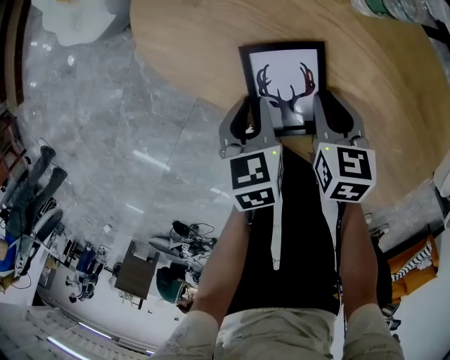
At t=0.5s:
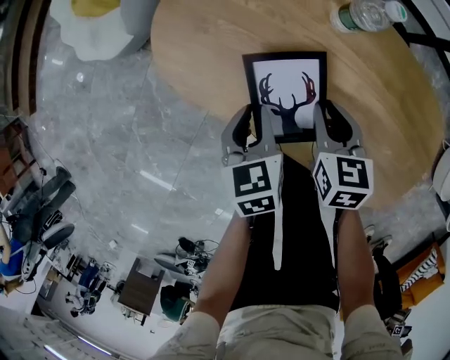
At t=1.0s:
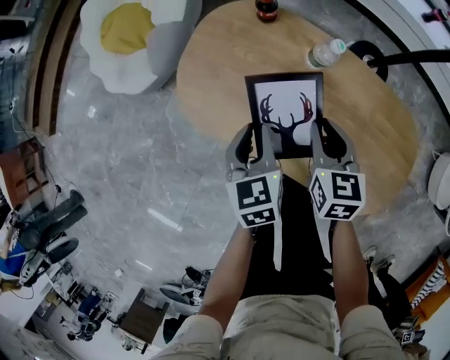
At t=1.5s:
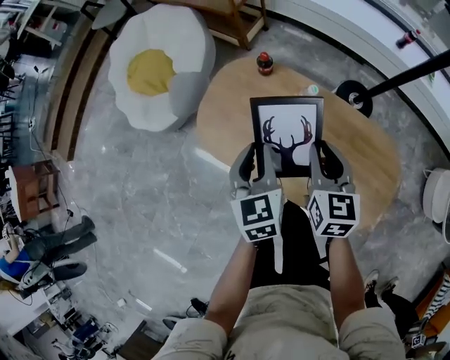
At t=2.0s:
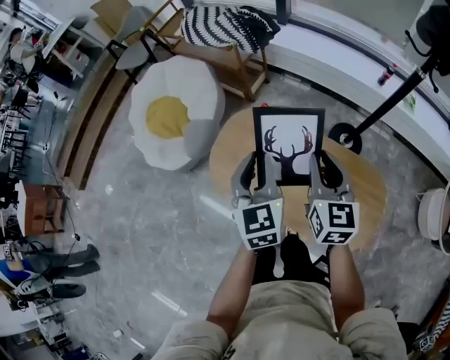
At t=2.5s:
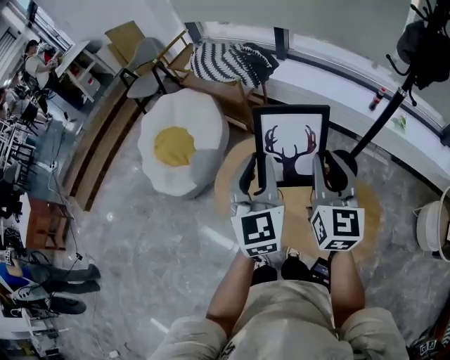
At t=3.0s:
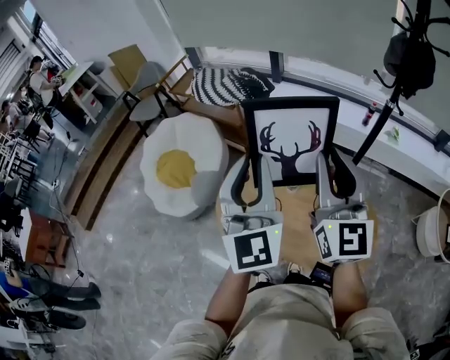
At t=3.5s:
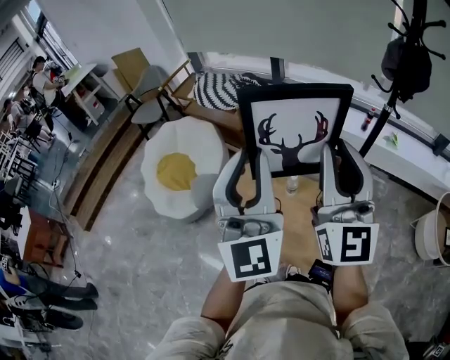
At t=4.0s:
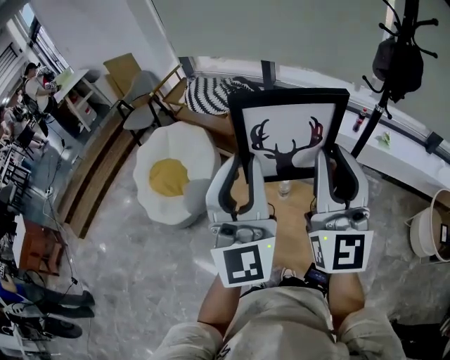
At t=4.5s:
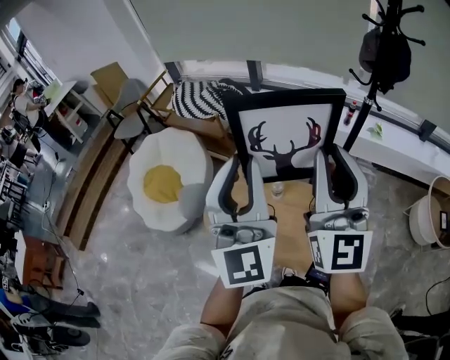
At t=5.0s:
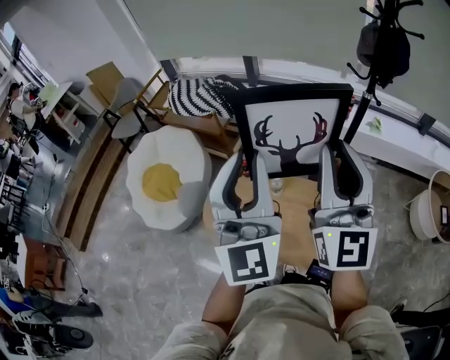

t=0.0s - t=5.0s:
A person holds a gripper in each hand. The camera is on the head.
t=0.0s - t=2.5s: The two grippers go approximately 70 cm upward. The left gripper points its fingers roughly 50 degrees further upward, while the right gripper tips its fingers upward by some 50 degrees.
t=2.5s - t=5.0s: The left gripper goes some 20 cm upward, and swivels about 30 degrees; the right gripper heads upward and backward, covering about 20 cm, and swivels some 30 degrees.

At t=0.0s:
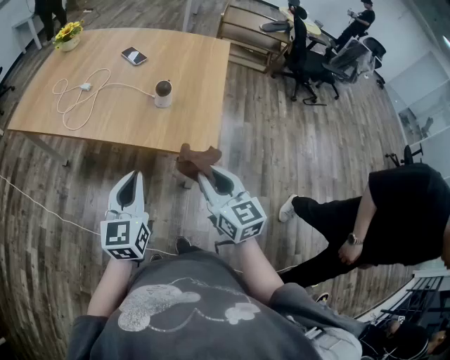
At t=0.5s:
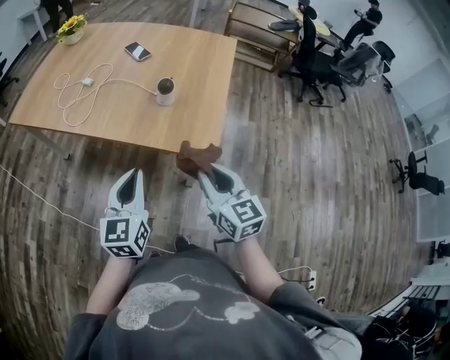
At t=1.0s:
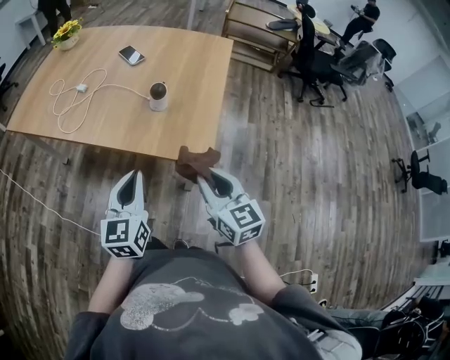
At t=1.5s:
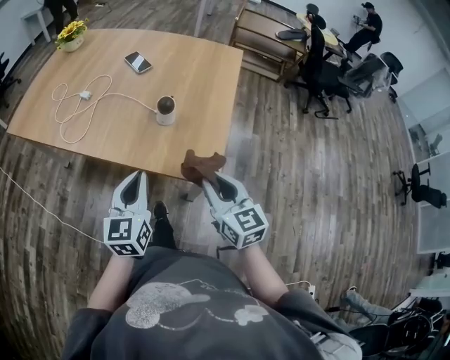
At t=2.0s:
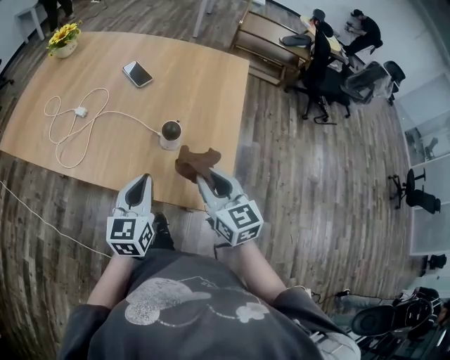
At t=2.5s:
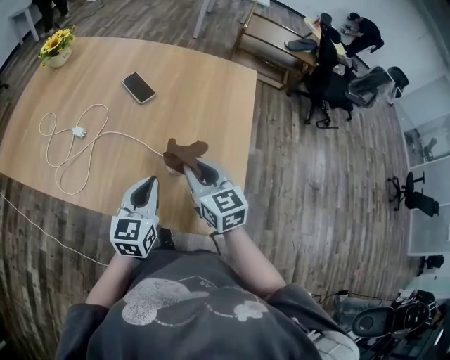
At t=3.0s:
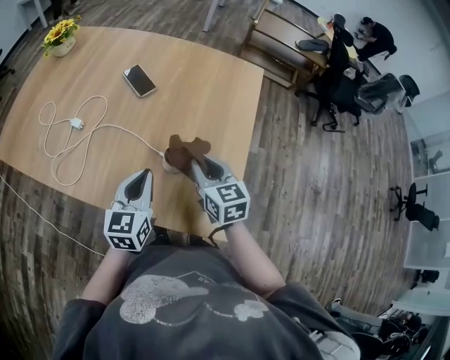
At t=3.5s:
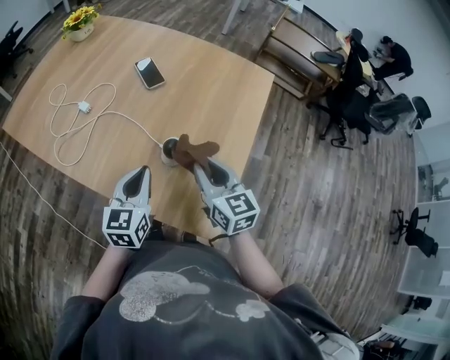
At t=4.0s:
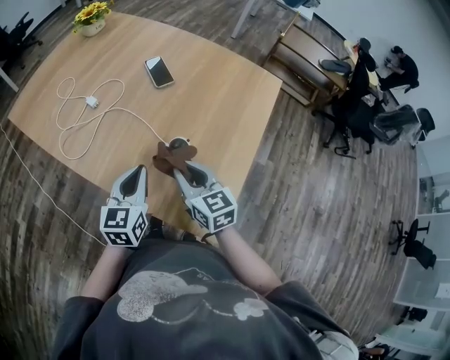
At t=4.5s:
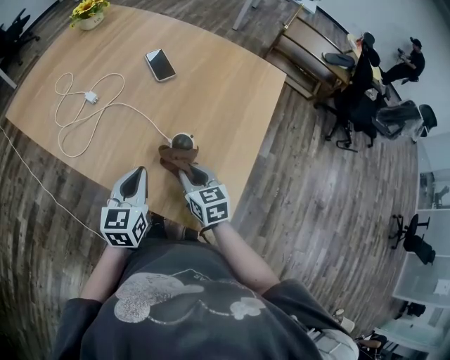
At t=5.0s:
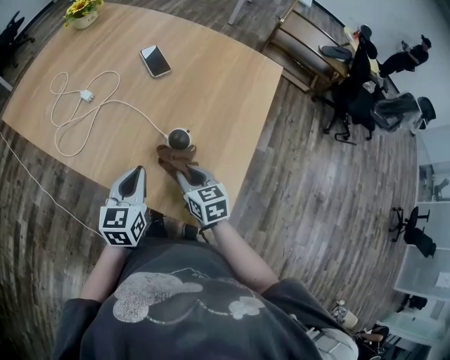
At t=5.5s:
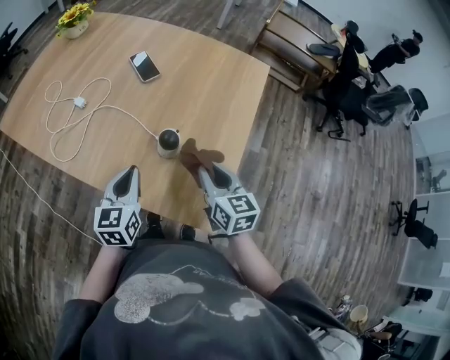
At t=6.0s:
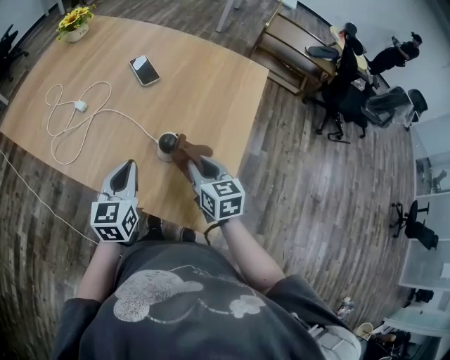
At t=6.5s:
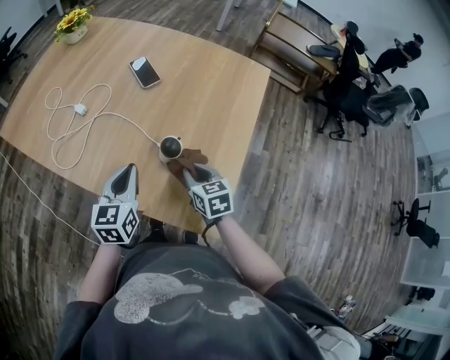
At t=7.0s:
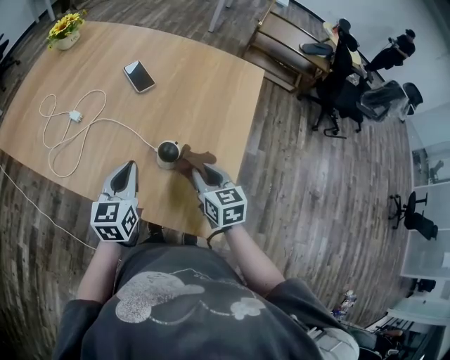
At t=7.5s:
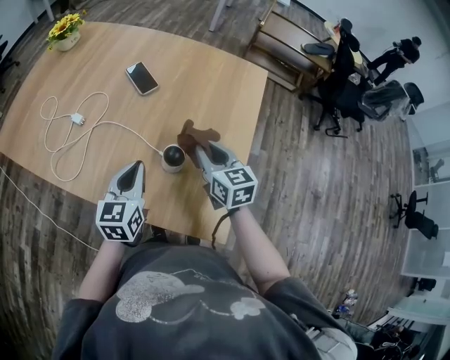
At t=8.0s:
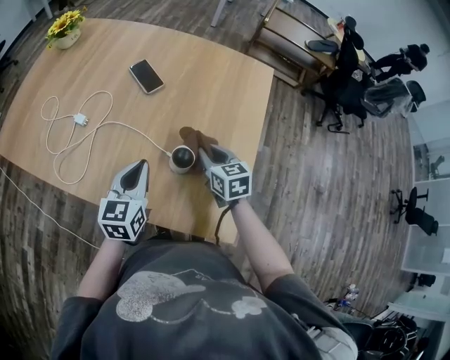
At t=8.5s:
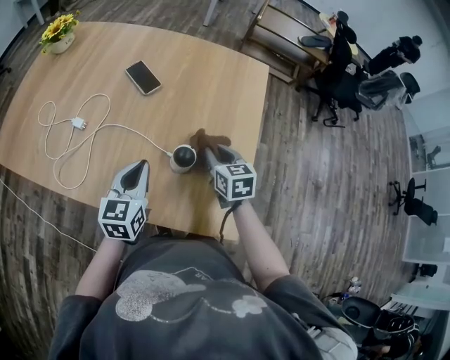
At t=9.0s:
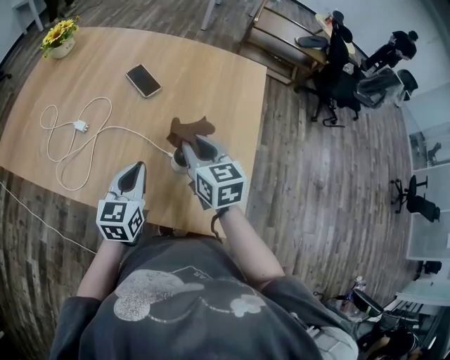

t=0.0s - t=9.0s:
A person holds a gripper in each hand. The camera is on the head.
t=0.0s - t=2.0s: The two grippers go roughly 20 cm forward.
t=2.0s - t=4.5s: The right gripper heads downward and forward, covering roughly 15 cm, and changes its angle by approximately 20 degrees; the left gripper travels forward by approximately 5 cm.
t=4.5s - t=7.0s: The right gripper goes up and down, some 10 cm each way, reversing 2 times.
t=7.0s - t=9.0s: The right gripper goes up and down, roughly 10 cm each way, reversing 2 times.

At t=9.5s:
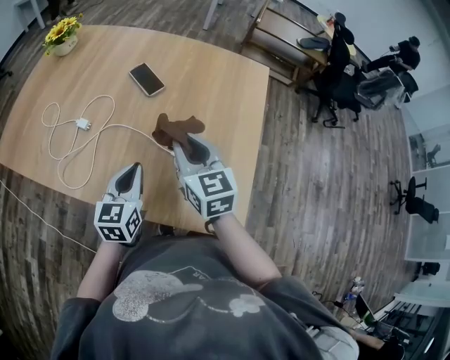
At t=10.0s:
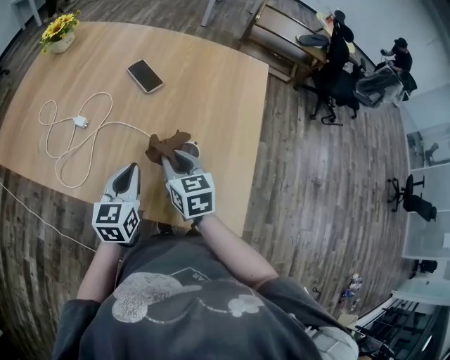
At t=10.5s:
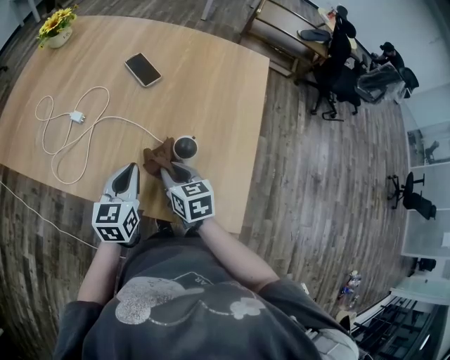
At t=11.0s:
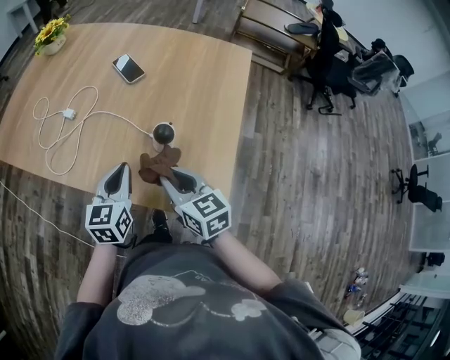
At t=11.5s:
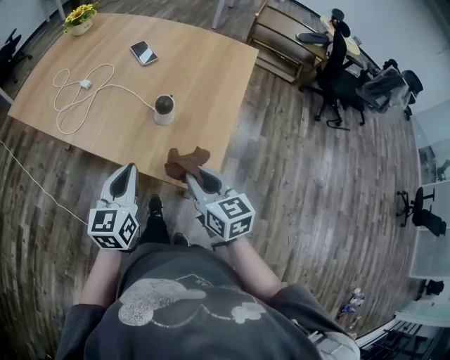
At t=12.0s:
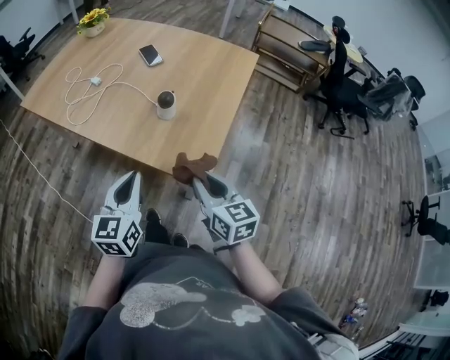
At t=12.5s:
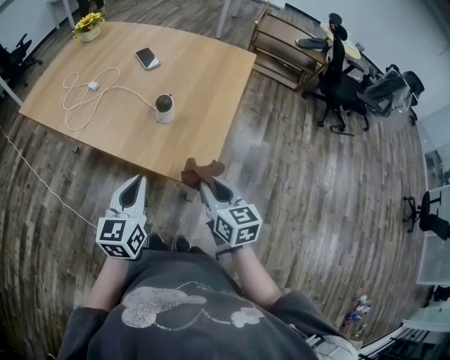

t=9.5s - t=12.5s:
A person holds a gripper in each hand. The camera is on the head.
t=9.5s - t=11.0s: The right gripper is displaced backward and downward by some 15 cm; the left gripper heads backward, covering roughly 5 cm.
t=11.0s - t=12.5s: The left gripper heads backward, covering about 20 cm. Meanwhile the right gripper is displaced backward and to the right by some 20 cm.

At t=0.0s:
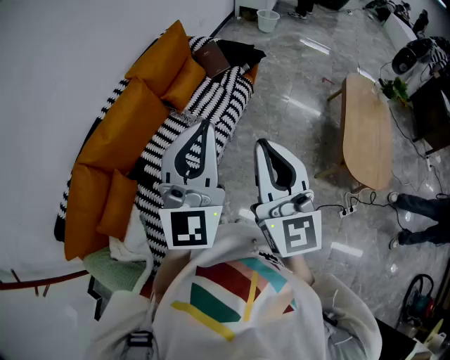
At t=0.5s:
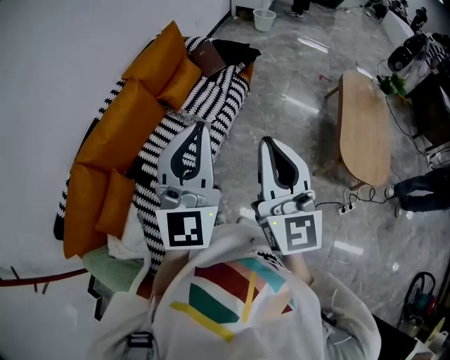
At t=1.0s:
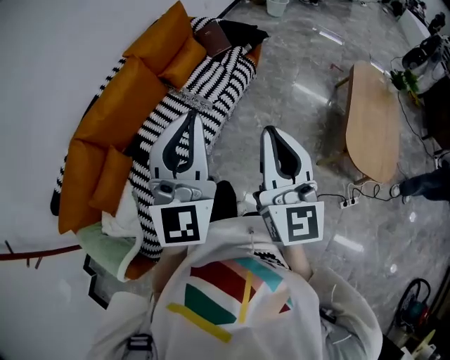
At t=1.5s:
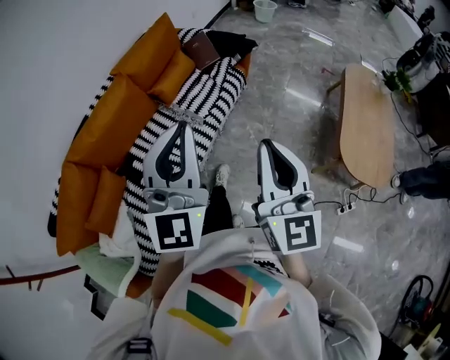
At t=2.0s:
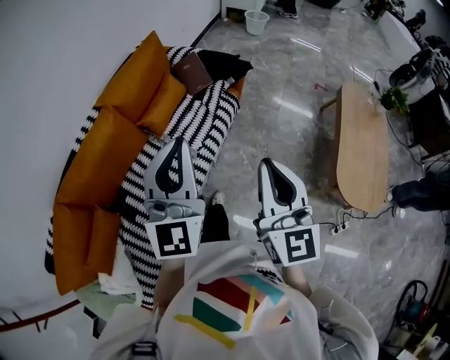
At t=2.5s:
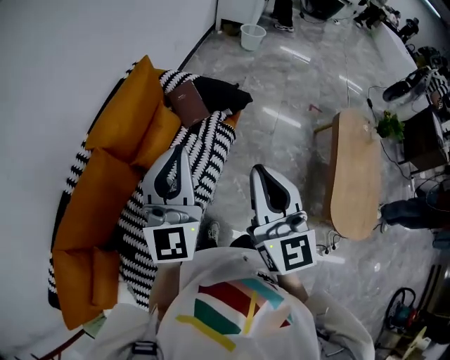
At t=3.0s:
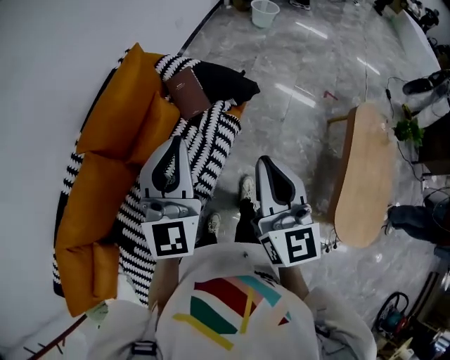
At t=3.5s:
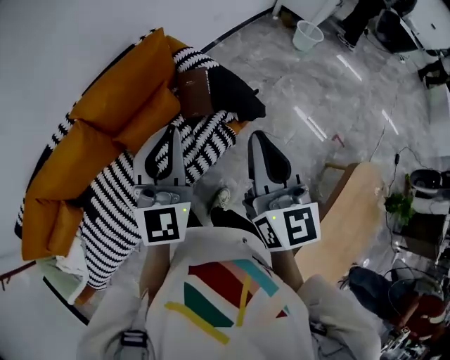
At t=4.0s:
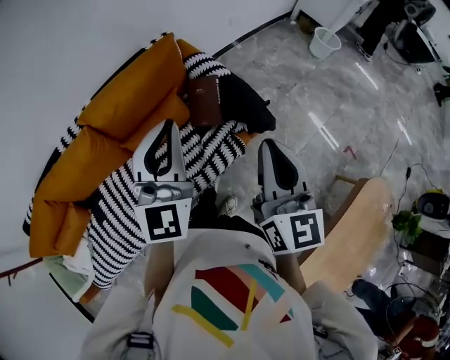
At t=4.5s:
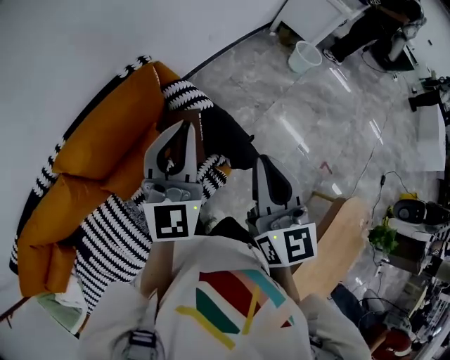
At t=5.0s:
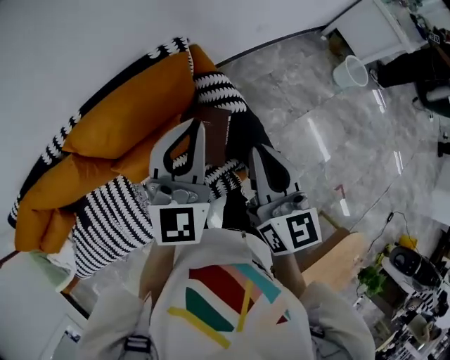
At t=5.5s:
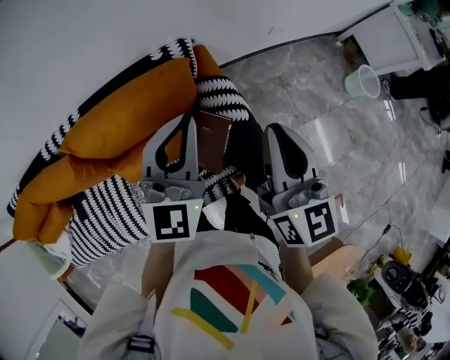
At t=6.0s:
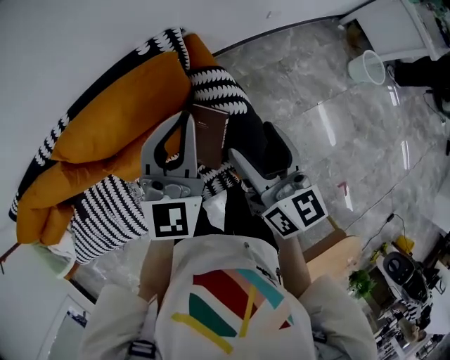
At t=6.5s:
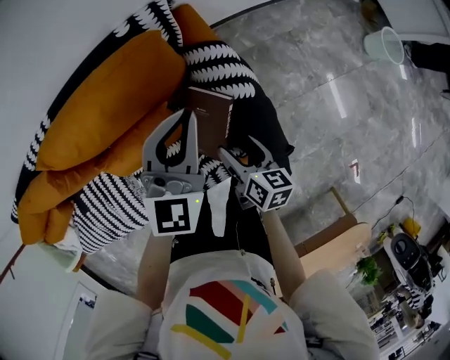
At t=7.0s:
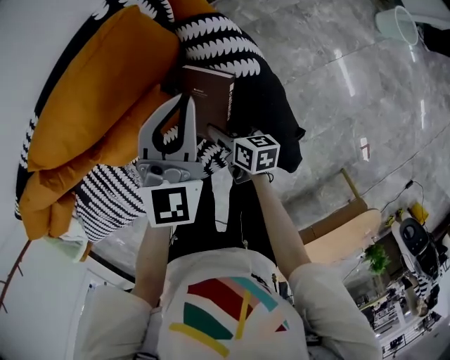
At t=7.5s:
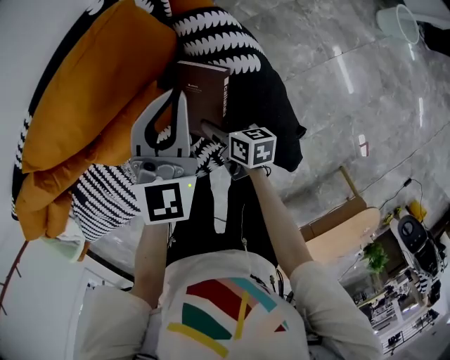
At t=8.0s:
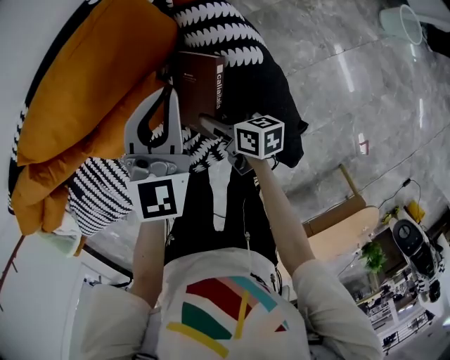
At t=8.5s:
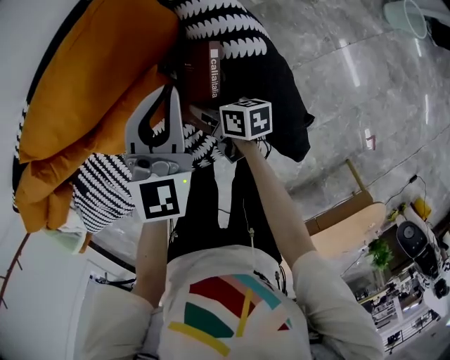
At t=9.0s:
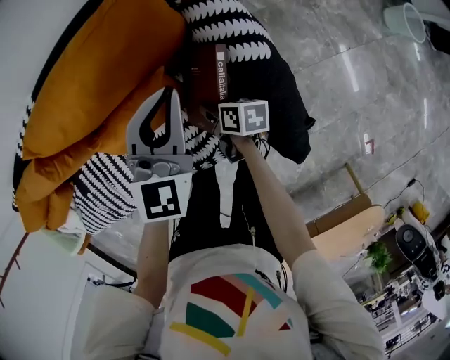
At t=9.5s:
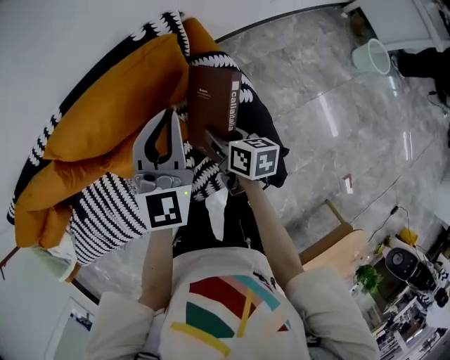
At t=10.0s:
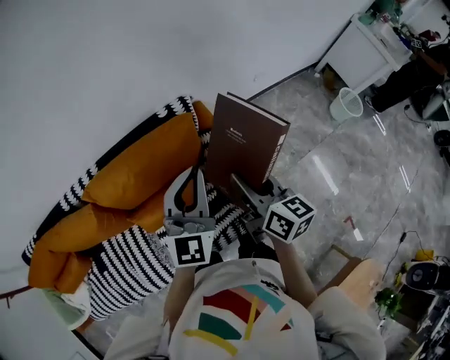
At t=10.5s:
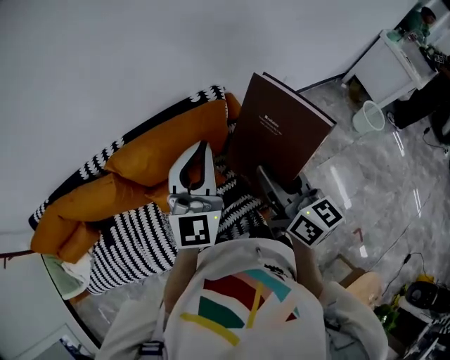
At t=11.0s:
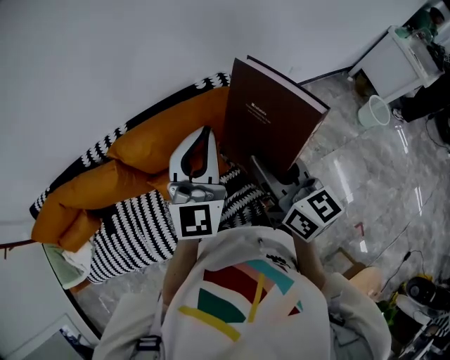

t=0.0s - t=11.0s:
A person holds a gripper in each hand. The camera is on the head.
t=0.0s - t=2.0s: The left gripper travels forward by some 15 cm. Meanwhile the right gripper goes about 20 cm forward, to the right and downward.
t=2.0s - t=3.5s: The two grippers go roughly 40 cm forward. The left gripper changes its angle by some 20 degrees. Meanwhile the right gripper rotates roughly 20 degrees.
t=3.5s - t=5.5s: The grippers both shift forward by some 40 cm. The right gripper swivels about 20 degrees.
t=5.5s - t=7.5s: The right gripper goes about 50 cm downward, angles its fingers downward, by approximately 40 degrees, and opens its fingers, while the left gripper travels downward by some 25 cm.
t=7.5s - t=9.0s: The right gripper closes its fingers.
t=9.0s - t=11.0s: The right gripper travels upward by roughly 50 cm, and angles its fingers upward, by some 40 degrees, while the left gripper moves upward, roughly 30 cm, and swivels about 30 degrees.
